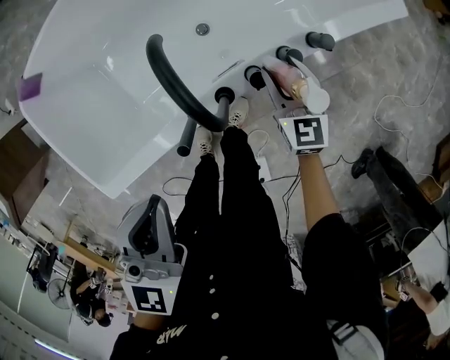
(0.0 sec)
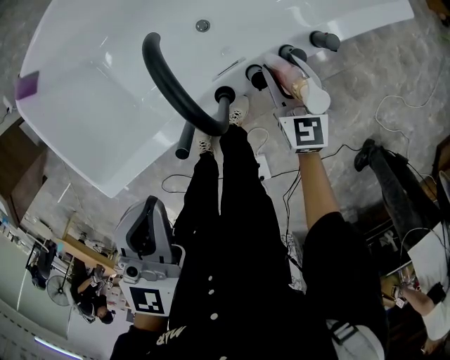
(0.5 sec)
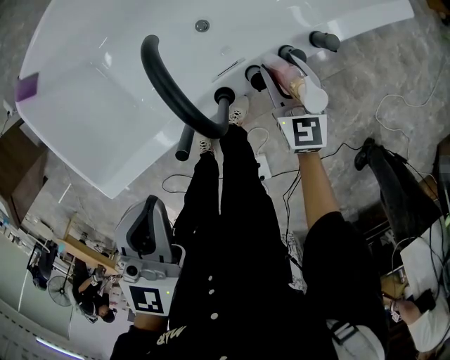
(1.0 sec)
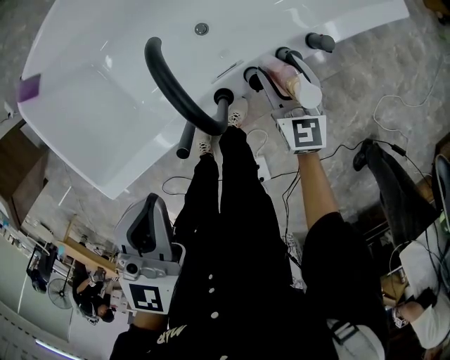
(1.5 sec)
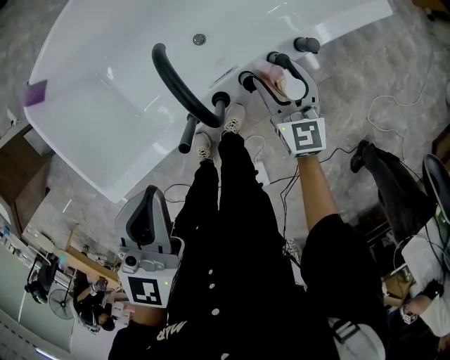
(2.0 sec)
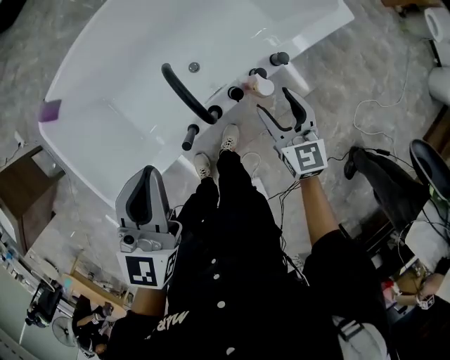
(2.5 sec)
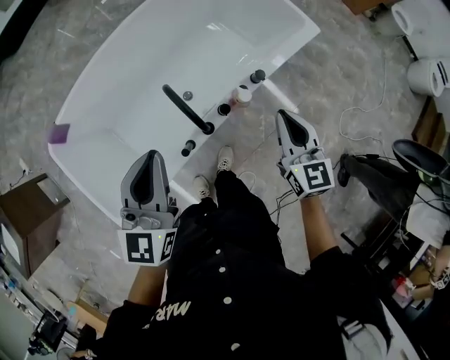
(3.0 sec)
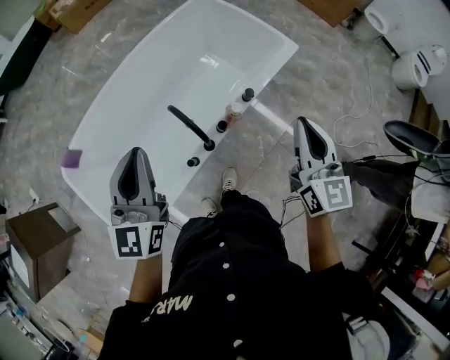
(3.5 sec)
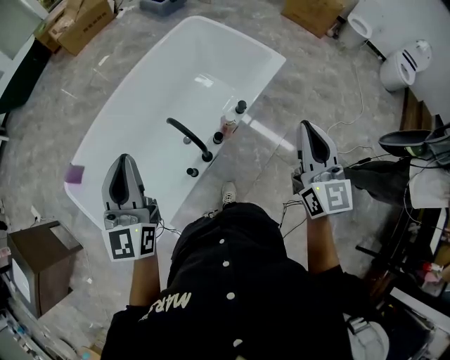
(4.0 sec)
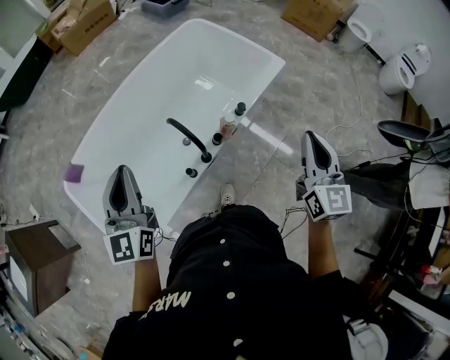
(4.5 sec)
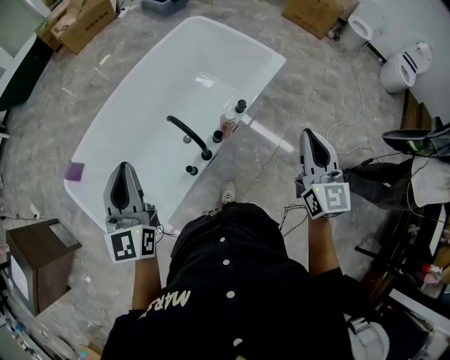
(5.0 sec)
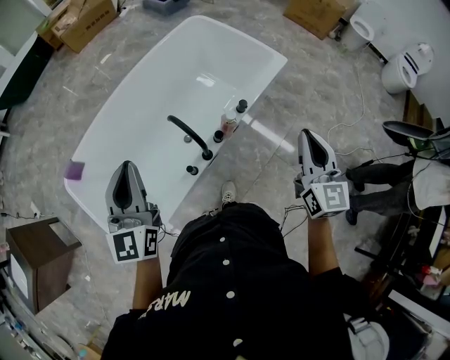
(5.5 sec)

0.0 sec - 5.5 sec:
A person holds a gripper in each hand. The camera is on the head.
0.0 sec - 2.0 sec: The grippers make only small movements.
2.0 sec - 3.5 sec: The left gripper goes some 20 cm upward, and turns by some 20 degrees, while the right gripper shifts roughly 40 cm upward, changes its angle by some 30 degrees, and closes up.
3.5 sec - 5.5 sec: The left gripper changes place by roughly 5 cm, while the right gripper shifts by roughly 5 cm.

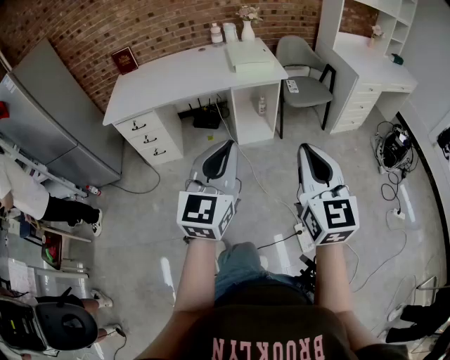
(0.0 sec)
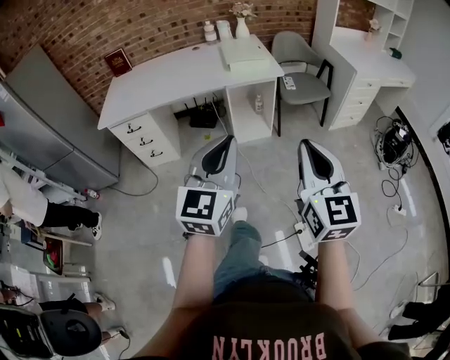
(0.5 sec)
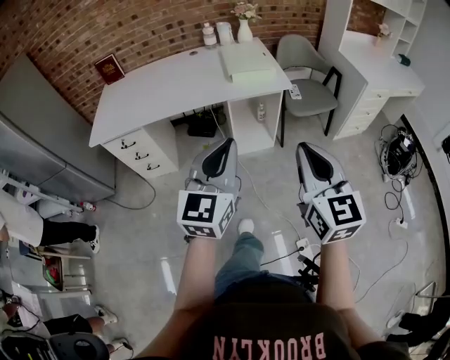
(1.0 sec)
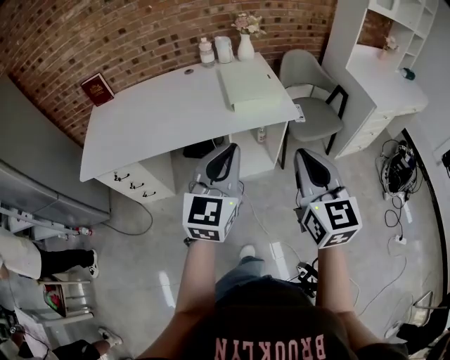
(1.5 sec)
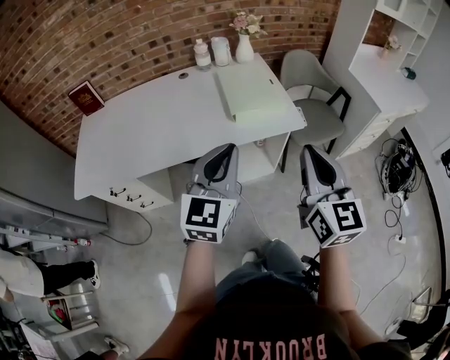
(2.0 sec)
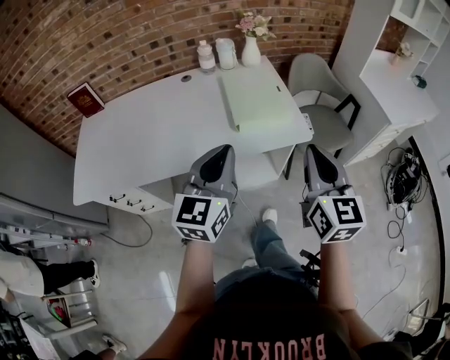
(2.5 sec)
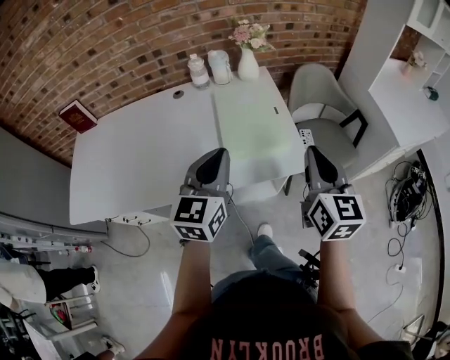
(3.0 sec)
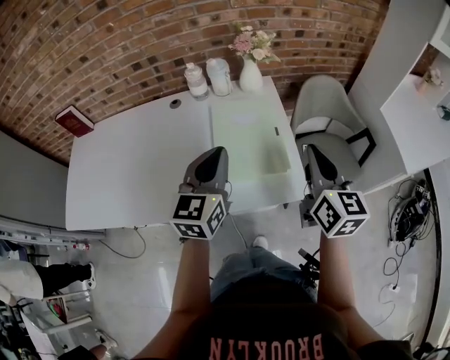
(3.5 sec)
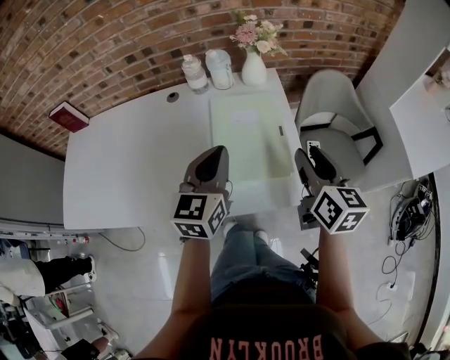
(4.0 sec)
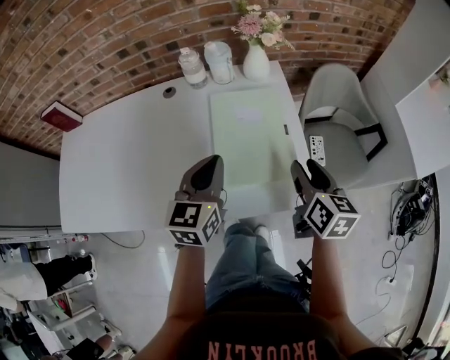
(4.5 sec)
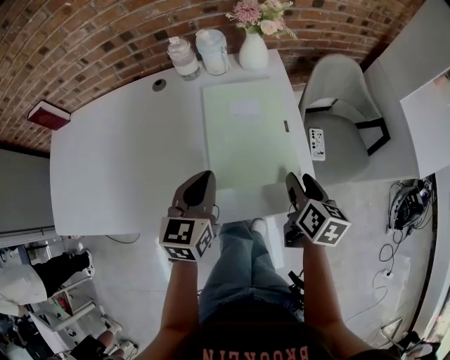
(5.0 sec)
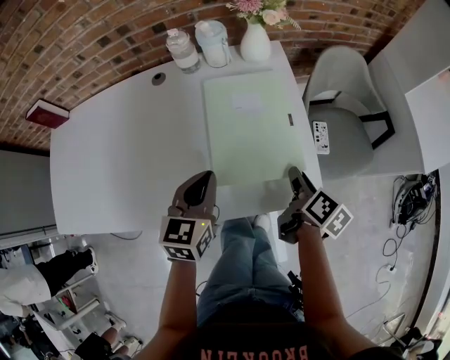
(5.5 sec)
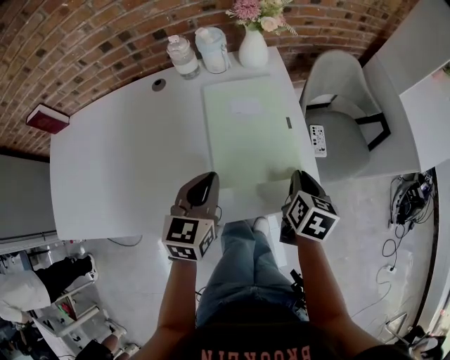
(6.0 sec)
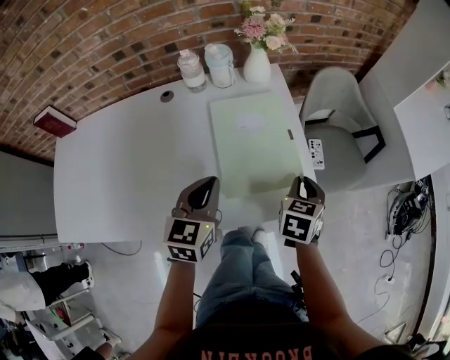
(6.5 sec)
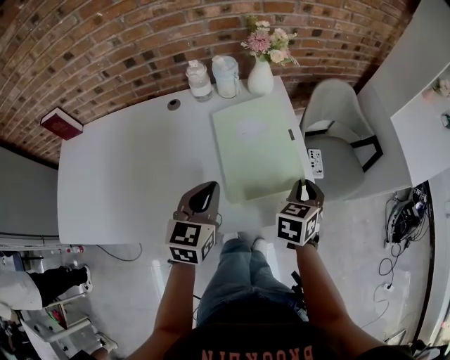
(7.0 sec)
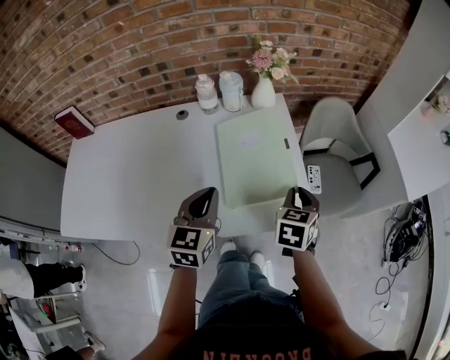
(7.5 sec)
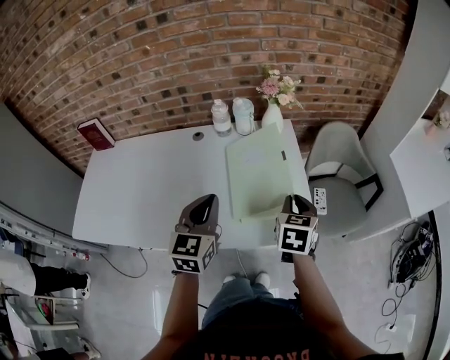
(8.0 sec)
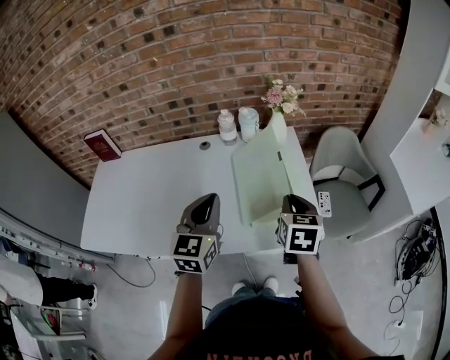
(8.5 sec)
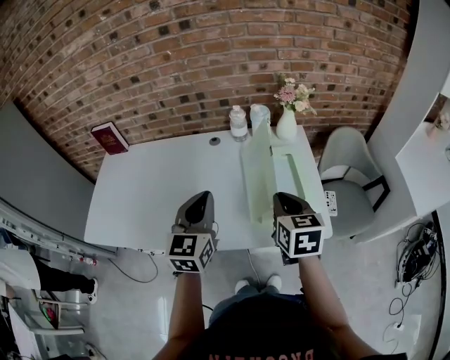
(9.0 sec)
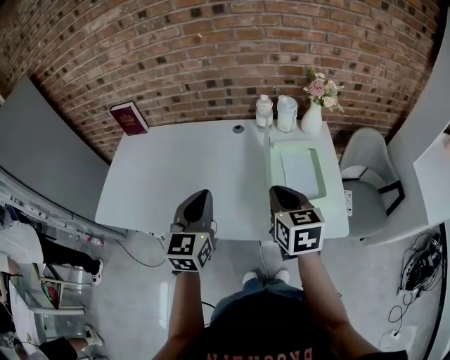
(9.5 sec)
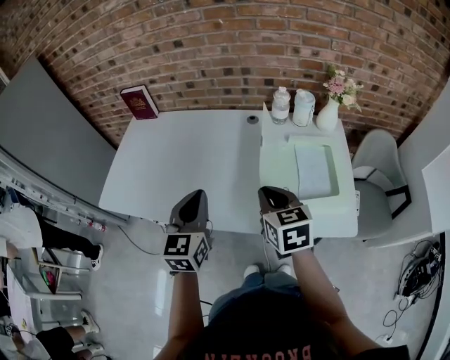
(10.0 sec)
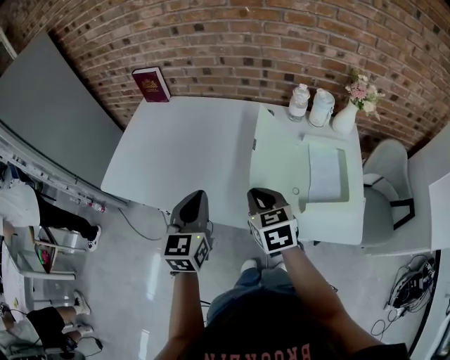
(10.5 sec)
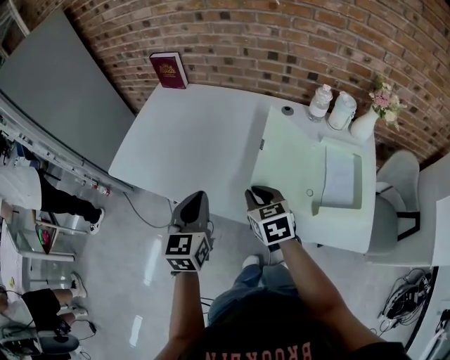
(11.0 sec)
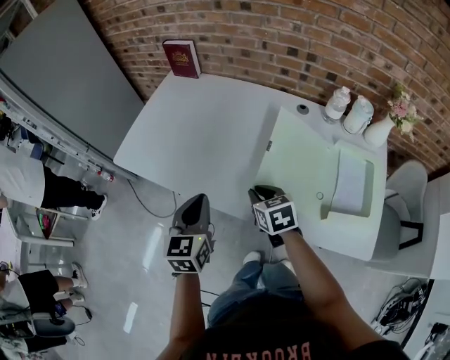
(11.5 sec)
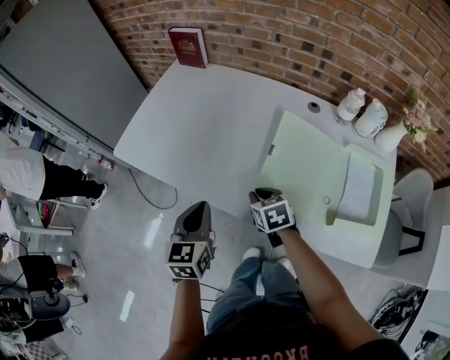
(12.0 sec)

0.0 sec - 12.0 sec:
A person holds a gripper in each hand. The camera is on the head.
0.0 sec - 2.0 sec: The two grippers travel together, forward, roughly 40 cm.
2.0 sec - 4.0 sec: The grippers both shift forward by about 35 cm. The left gripper changes its angle by roughly 20 degrees; the right gripper changes its angle by roughly 30 degrees, and opens.
4.0 sec - 6.0 sec: The right gripper travels downward by approximately 15 cm, rotates roughly 30 degrees, and closes up, while the left gripper shifts approximately 10 cm downward.
6.0 sec - 8.0 sec: Both grippers travel together upward, roughly 10 cm. The right gripper swivels roughly 30 degrees.
8.0 sec - 10.0 sec: The right gripper ends up approximately 30 cm from where it was, and changes its angle by roughly 40 degrees; the left gripper shifts by approximately 25 cm.
10.0 sec - 12.0 sec: The right gripper heads downward and to the left, covering about 25 cm, and turns by some 30 degrees. Meanwhile the left gripper is displaced to the left and downward by about 20 cm, and changes its angle by some 20 degrees.

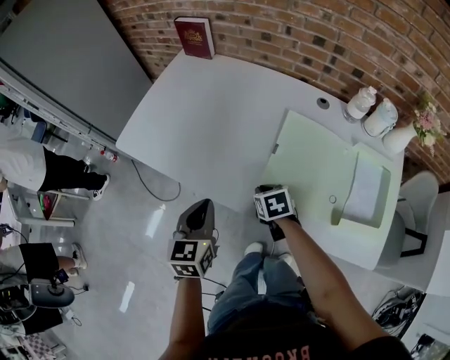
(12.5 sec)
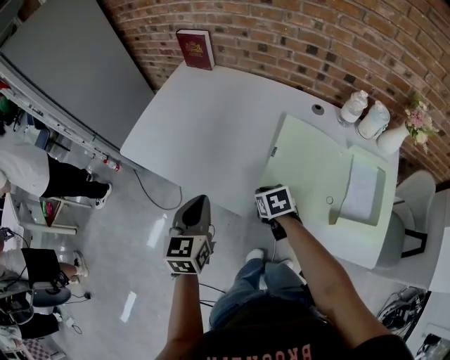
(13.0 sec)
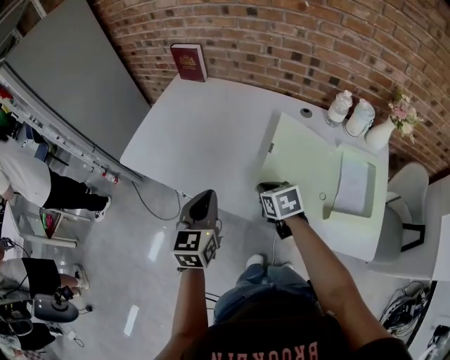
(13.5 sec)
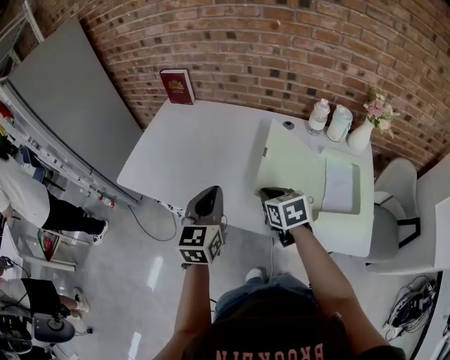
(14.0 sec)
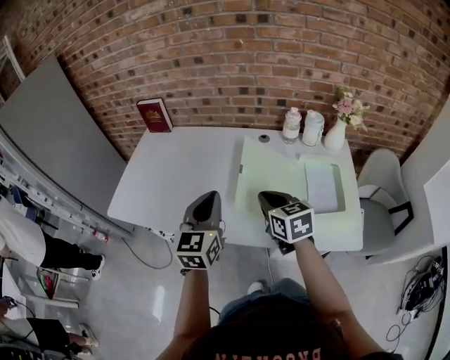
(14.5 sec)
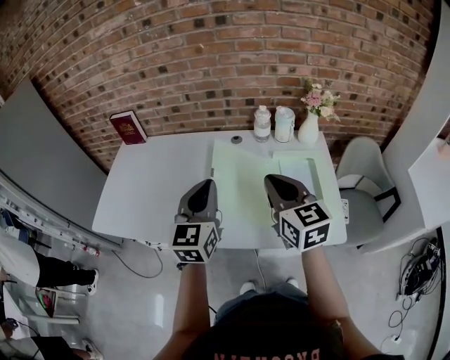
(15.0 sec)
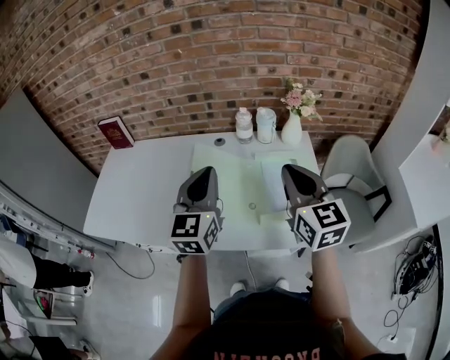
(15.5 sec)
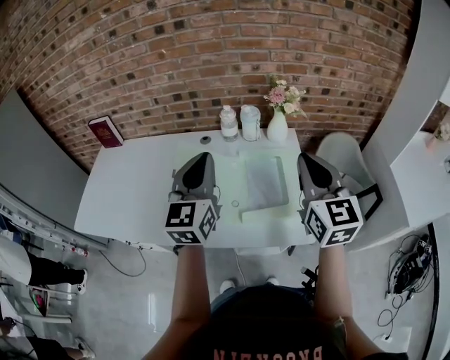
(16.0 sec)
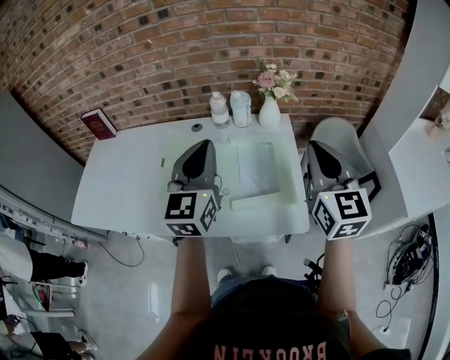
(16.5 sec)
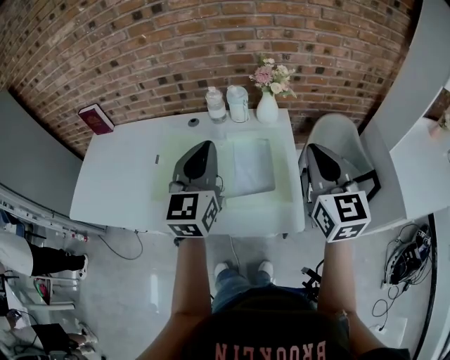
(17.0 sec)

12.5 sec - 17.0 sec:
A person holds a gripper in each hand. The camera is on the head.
12.5 sec - 14.5 sec: Both grippers travel together upward and to the right, approximately 20 cm. The left gripper rotates roughly 30 degrees. Meanwhile the right gripper tips its fingers upward by roughly 30 degrees.
14.5 sec - 17.0 sec: The left gripper travels to the right by about 30 cm. The right gripper moves to the right and upward, about 40 cm, and turns by roughly 40 degrees.

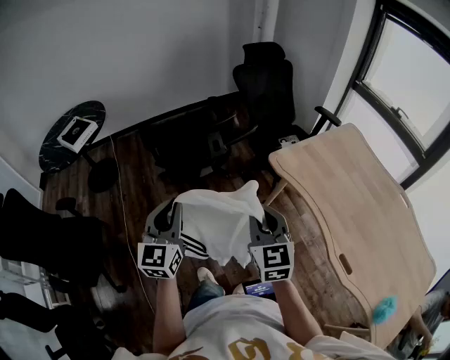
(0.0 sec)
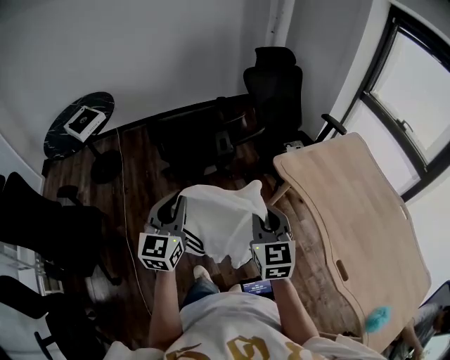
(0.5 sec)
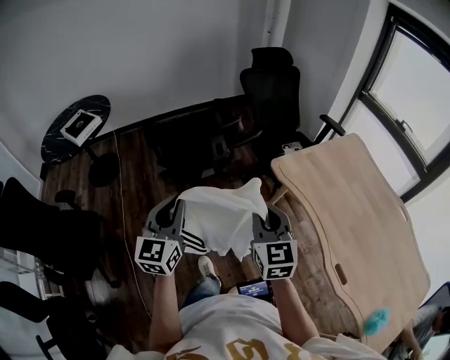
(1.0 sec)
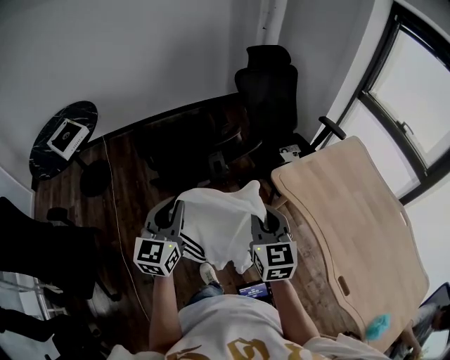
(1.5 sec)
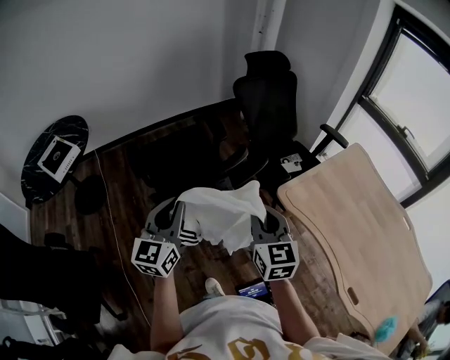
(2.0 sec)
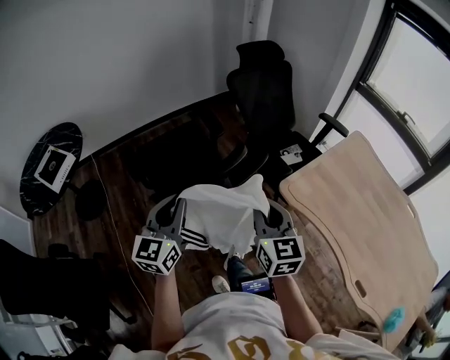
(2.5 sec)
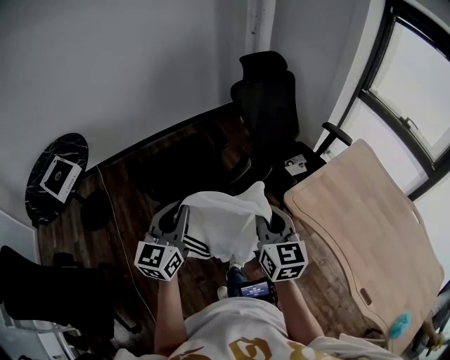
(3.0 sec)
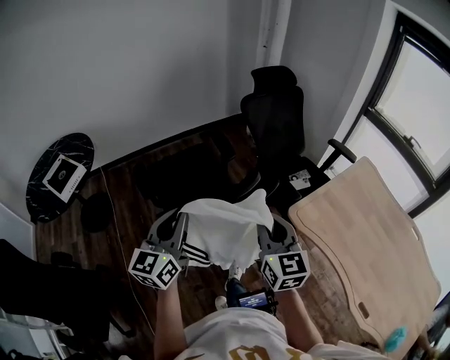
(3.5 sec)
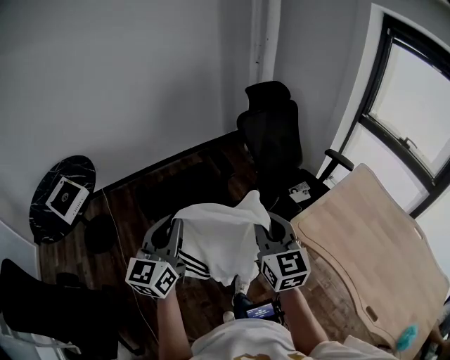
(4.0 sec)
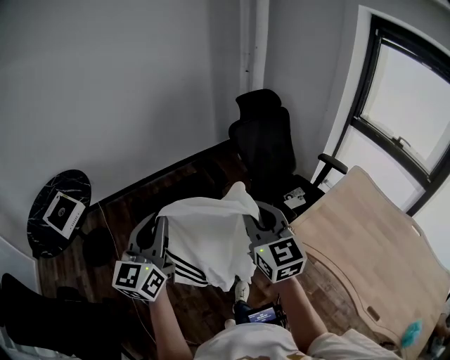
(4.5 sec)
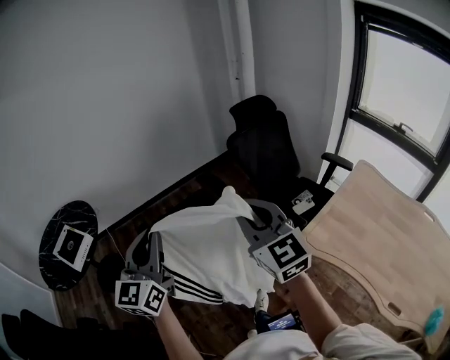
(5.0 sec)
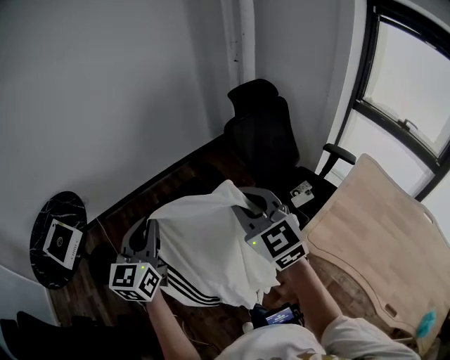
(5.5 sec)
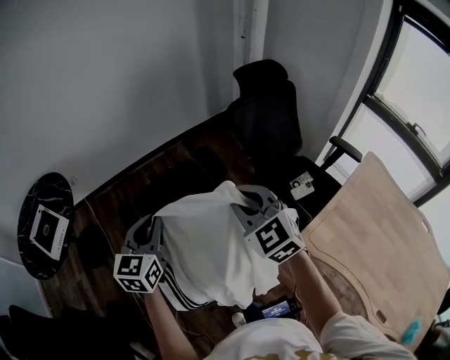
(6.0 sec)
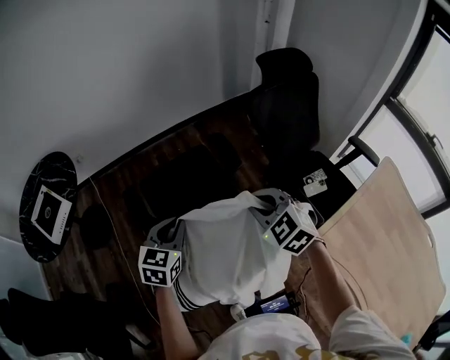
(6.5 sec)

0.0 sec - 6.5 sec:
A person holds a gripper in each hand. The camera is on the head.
0.0 sec - 2.0 sec: The two grippers go approximately 20 cm forward.
2.0 sec - 4.5 sec: Both grippers travel together upward, forward and to the left, about 15 cm.
4.5 sec - 6.5 sec: The left gripper heads downward and forward, covering about 30 cm, and angles its fingers downward, by about 40 degrees, while the right gripper travels forward and downward by approximately 30 cm, and tips its fingers downward by about 40 degrees.
